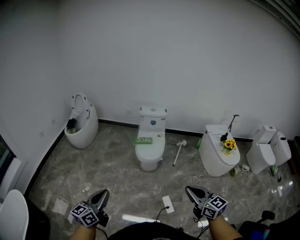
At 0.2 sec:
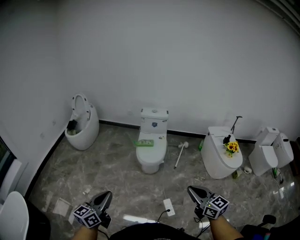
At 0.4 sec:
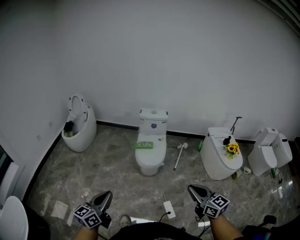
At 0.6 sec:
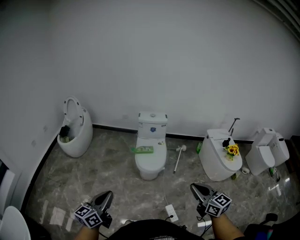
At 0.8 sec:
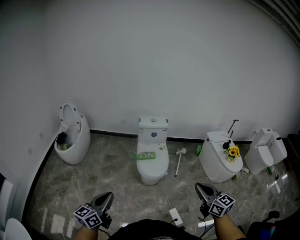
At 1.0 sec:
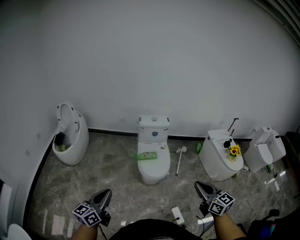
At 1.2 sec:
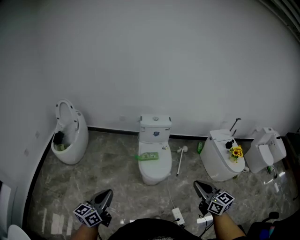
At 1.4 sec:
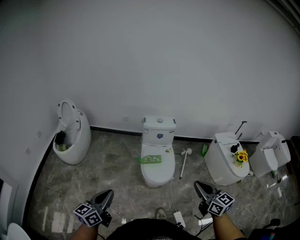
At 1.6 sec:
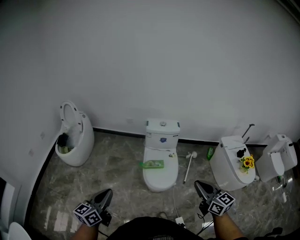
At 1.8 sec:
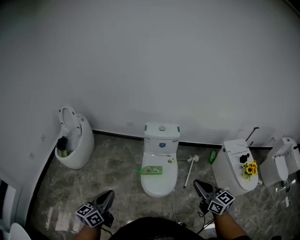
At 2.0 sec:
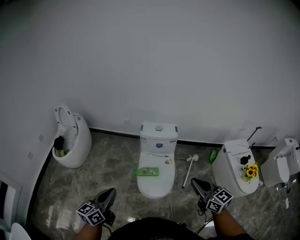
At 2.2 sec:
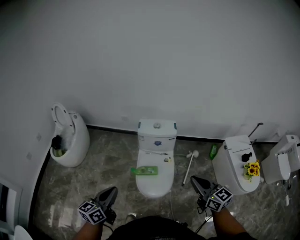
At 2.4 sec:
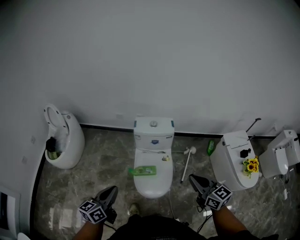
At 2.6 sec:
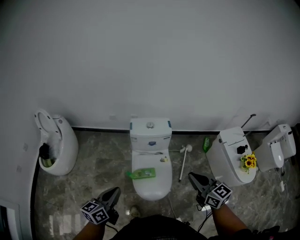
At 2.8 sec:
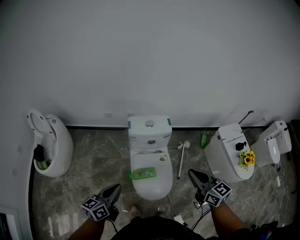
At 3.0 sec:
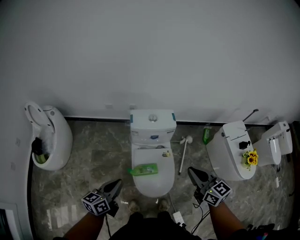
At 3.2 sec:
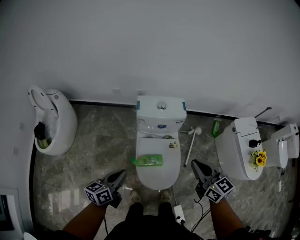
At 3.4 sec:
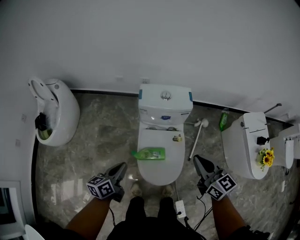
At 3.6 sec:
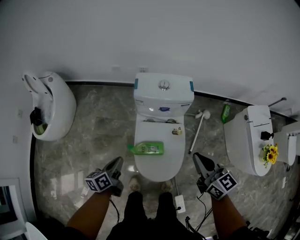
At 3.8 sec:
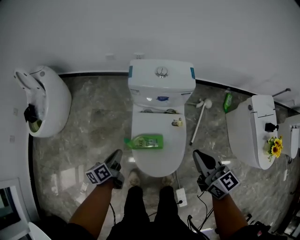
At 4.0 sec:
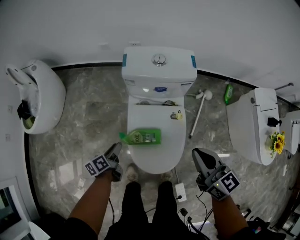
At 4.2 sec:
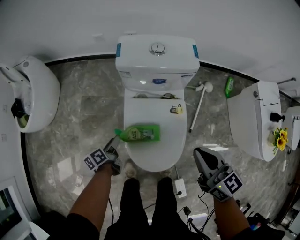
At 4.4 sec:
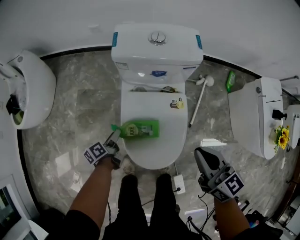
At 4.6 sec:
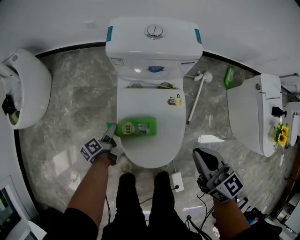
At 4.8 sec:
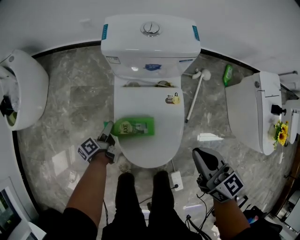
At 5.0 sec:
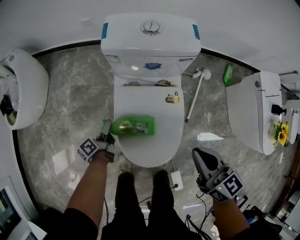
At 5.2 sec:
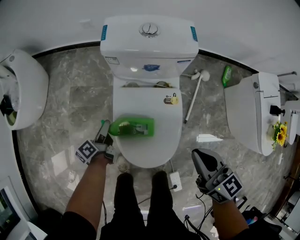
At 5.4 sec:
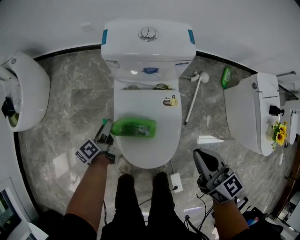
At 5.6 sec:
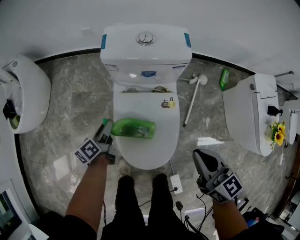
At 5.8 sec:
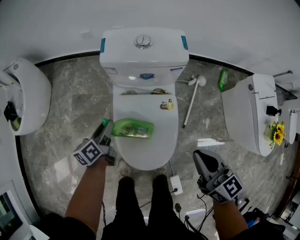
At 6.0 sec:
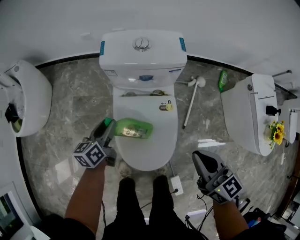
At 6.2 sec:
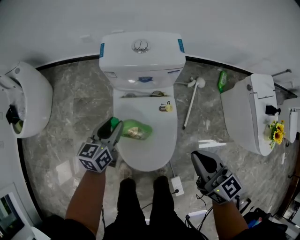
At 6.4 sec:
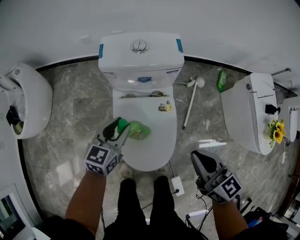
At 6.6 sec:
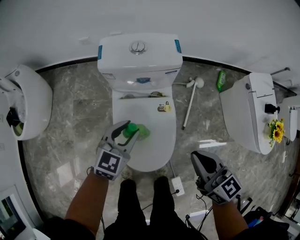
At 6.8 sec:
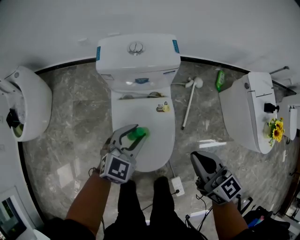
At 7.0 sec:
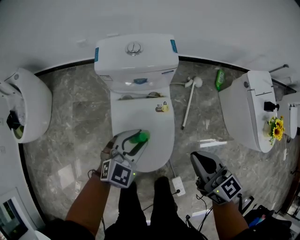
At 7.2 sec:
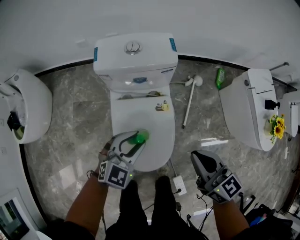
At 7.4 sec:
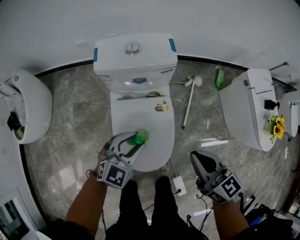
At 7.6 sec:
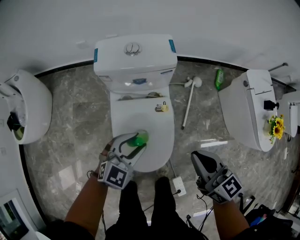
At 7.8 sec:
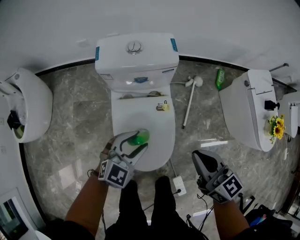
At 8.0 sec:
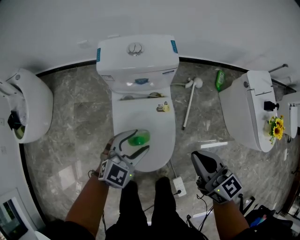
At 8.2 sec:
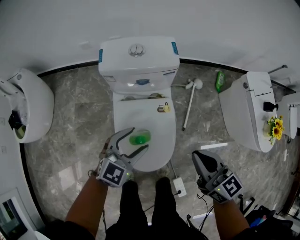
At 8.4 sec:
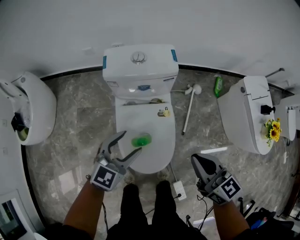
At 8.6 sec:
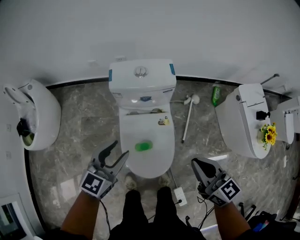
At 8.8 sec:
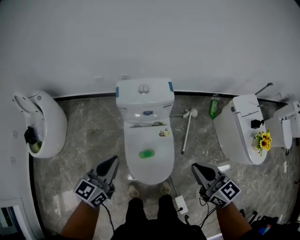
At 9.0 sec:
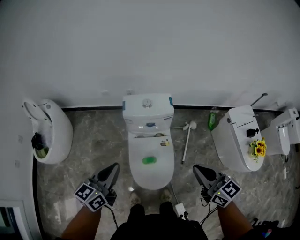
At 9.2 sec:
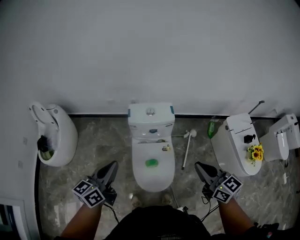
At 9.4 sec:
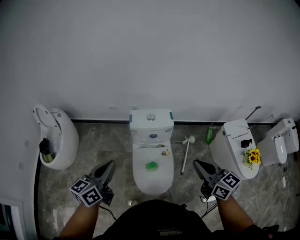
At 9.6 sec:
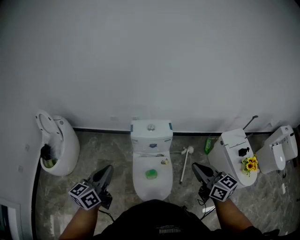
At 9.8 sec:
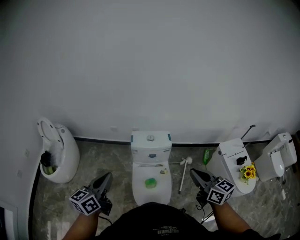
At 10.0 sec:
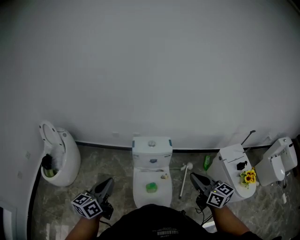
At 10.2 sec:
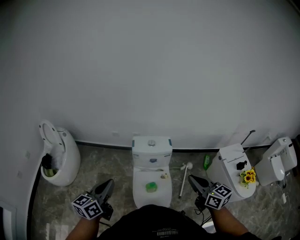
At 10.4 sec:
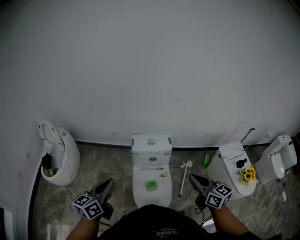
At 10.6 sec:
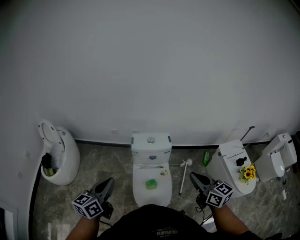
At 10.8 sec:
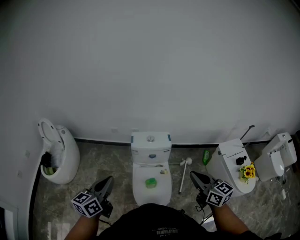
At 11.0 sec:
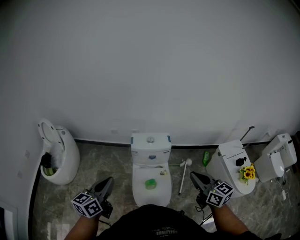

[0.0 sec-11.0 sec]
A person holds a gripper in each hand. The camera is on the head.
0.0 sec to 1.6 sec: The two grippers travel together, forward, roughly 50 cm.
1.6 sec to 3.2 sec: Both grippers are carried forward, some 40 cm. The left gripper goes approximately 20 cm downward, and rotates approximately 20 degrees.
3.2 sec to 4.8 sec: The left gripper shifts about 40 cm downward, rolls counterclockwise, seen from behind, by some 40 degrees, and opens. Meanwhile the right gripper goes roughly 30 cm downward.
4.8 sec to 6.2 sec: The right gripper travels upward by approximately 5 cm. The left gripper shifts approximately 20 cm upward and to the right, and rolls clockwise, seen from behind, by approximately 60 degrees.
6.2 sec to 7.8 sec: The left gripper goes roughly 15 cm to the right and backward, and twists roughly 50 degrees clockwise, seen from behind.
7.8 sec to 9.4 sec: The right gripper travels upward by some 35 cm; the left gripper moves upward and to the left, roughly 50 cm, twists about 40 degrees counterclockwise, seen from behind, and closes up.
9.4 sec to 11.0 sec: The left gripper moves some 5 cm.

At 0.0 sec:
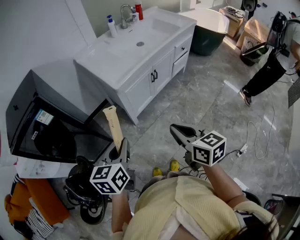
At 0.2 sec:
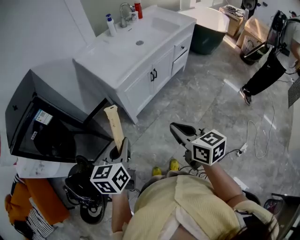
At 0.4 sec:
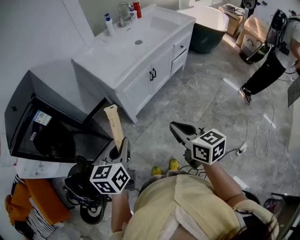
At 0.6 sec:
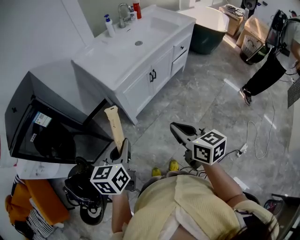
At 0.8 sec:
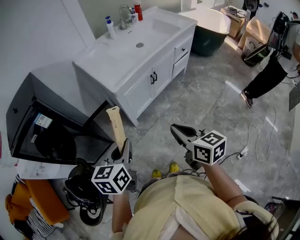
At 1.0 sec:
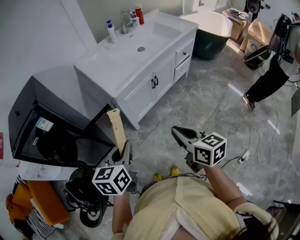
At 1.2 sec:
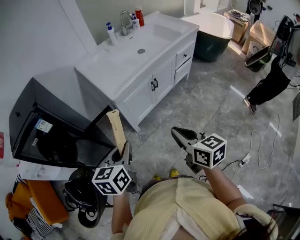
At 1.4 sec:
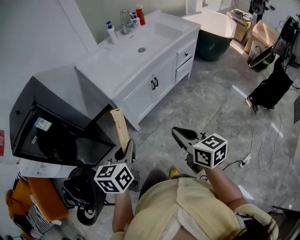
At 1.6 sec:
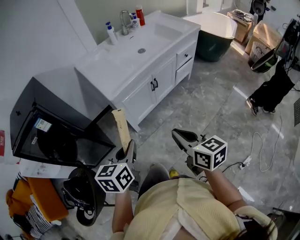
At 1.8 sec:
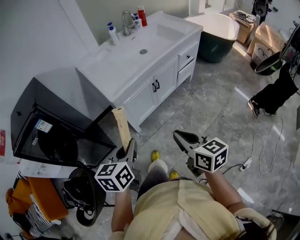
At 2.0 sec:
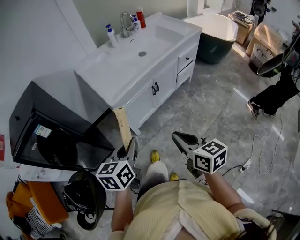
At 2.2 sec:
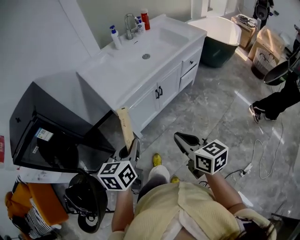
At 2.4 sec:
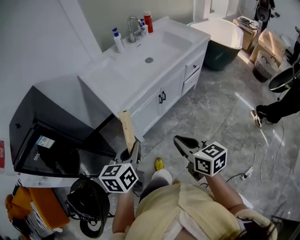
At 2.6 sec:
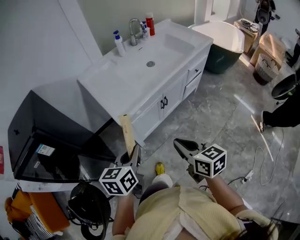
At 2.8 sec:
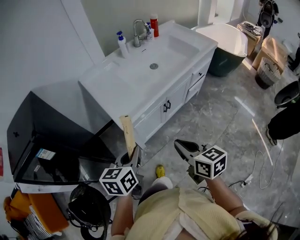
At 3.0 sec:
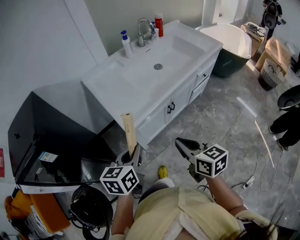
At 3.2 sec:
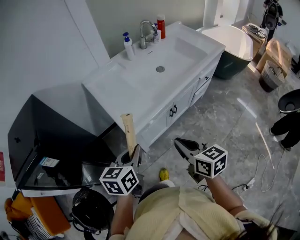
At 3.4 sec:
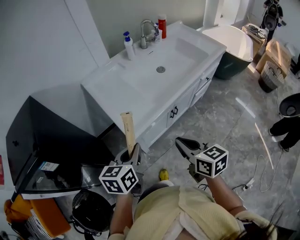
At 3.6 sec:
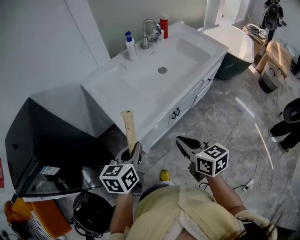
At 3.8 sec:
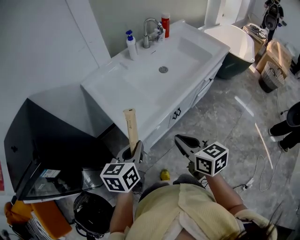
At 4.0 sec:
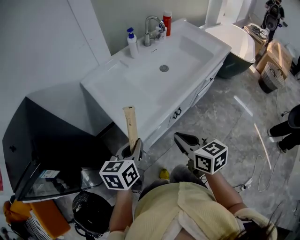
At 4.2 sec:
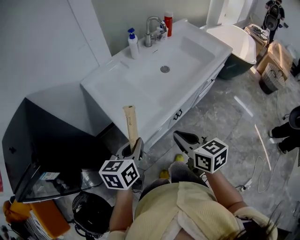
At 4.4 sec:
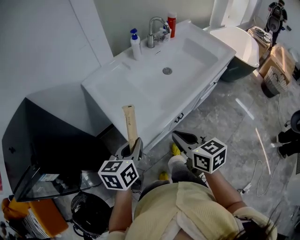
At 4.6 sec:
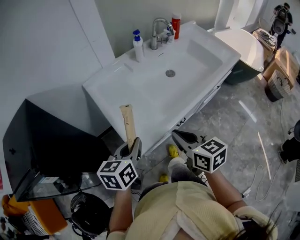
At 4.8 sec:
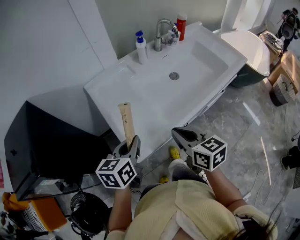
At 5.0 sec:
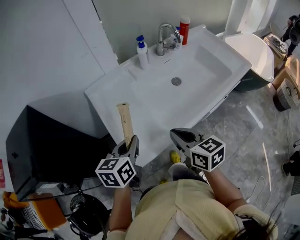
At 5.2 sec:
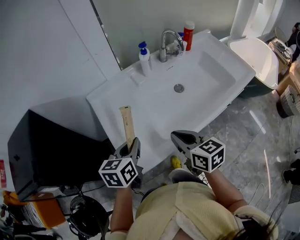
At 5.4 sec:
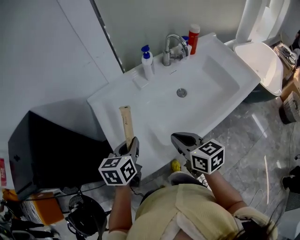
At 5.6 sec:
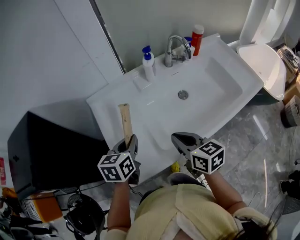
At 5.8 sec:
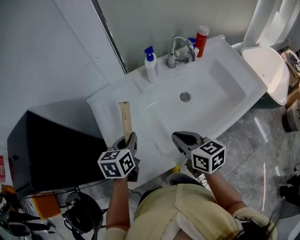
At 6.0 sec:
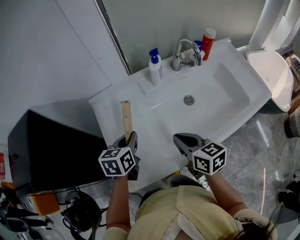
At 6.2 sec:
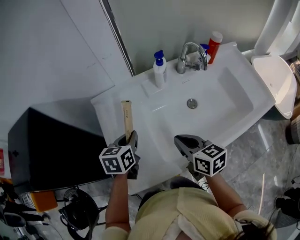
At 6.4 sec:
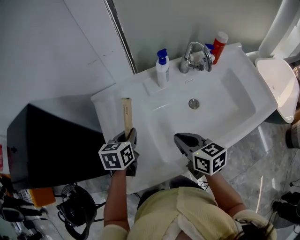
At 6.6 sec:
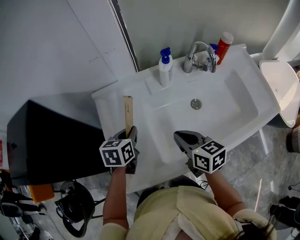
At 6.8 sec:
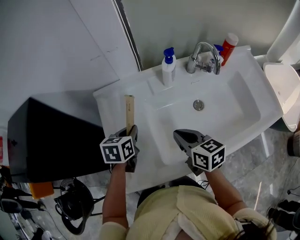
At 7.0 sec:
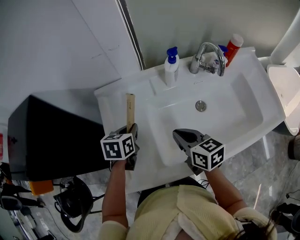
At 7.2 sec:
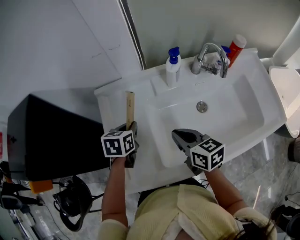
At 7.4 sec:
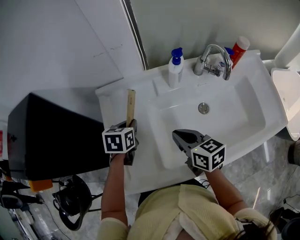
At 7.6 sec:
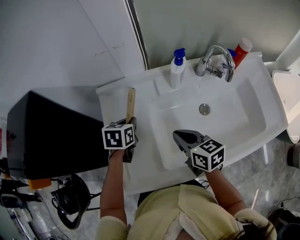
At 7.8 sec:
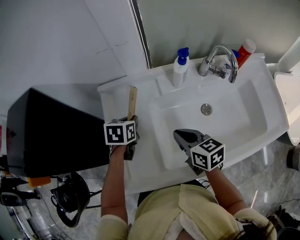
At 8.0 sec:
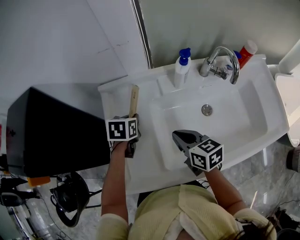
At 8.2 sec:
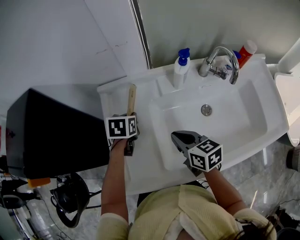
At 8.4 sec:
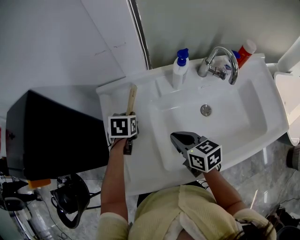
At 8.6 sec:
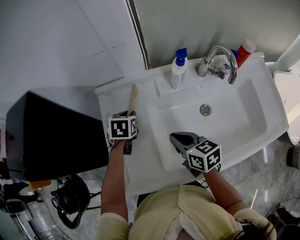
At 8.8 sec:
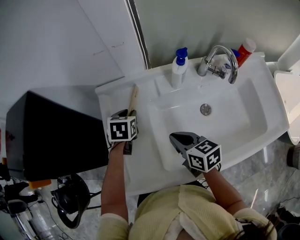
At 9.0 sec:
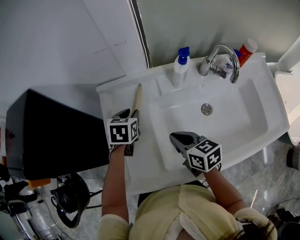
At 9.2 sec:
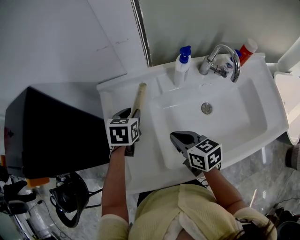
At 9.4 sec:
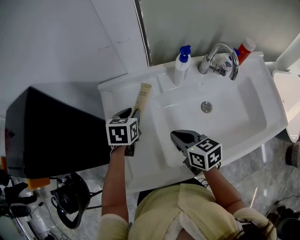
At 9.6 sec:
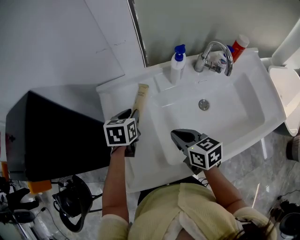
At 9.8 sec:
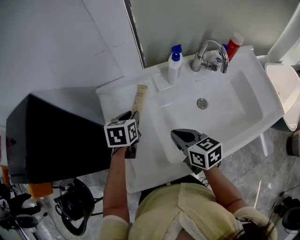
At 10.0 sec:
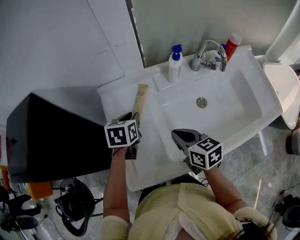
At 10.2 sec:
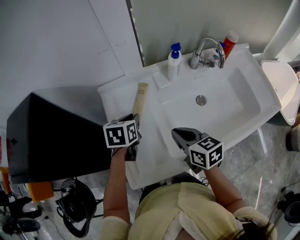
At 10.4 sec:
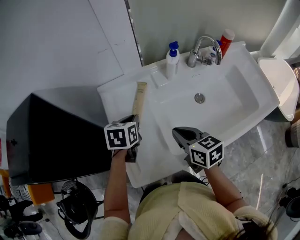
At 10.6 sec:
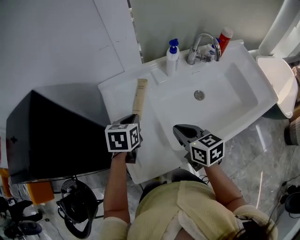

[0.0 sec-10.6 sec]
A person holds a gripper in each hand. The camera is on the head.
0.0 sec to 1.6 sec: Both grippers move to the right, about 10 cm.
1.6 sec to 3.0 sec: The grippers both shift forward by some 20 cm.
3.0 sec to 4.6 sec: The grippers both shift forward by about 15 cm.
4.6 sec to 6.0 sec: Both grippers travel together forward, approximately 20 cm.
6.0 sec to 7.6 sec: The left gripper goes some 10 cm forward and downward. The right gripper travels forward by roughly 10 cm.
7.6 sec to 9.0 sec: The left gripper opens up.
9.0 sec to 10.6 sec: The left gripper heads backward, covering some 10 cm, and closes its fingers. Meanwhile the right gripper is displaced backward by approximately 5 cm.

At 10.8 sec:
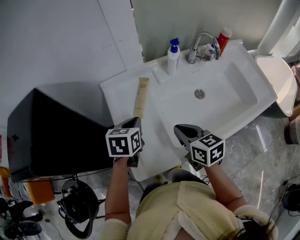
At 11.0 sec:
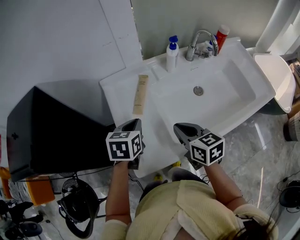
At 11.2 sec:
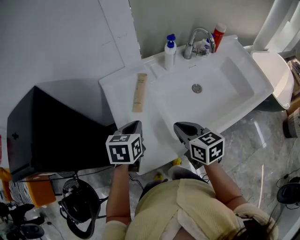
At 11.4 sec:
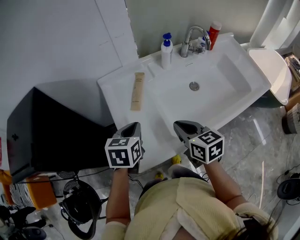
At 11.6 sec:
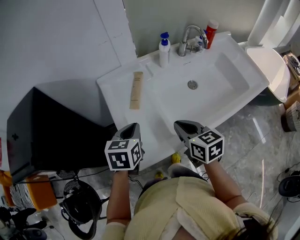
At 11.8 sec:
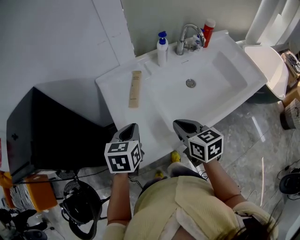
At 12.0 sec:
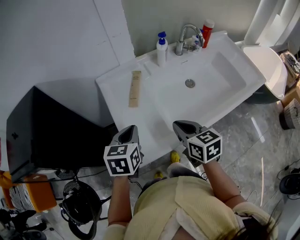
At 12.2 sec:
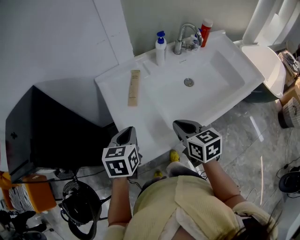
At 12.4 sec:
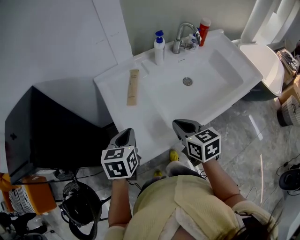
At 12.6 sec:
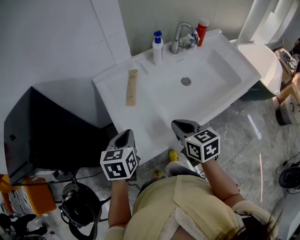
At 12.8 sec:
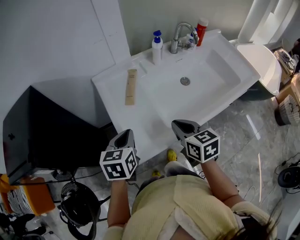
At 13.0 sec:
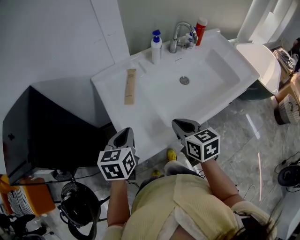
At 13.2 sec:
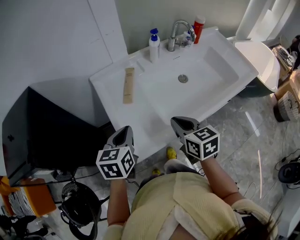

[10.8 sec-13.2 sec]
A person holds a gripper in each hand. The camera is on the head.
10.8 sec to 12.0 sec: The right gripper shifts about 5 cm backward, while the left gripper travels backward by about 10 cm.
12.0 sec to 13.2 sec: There are only small adjustments of the grippers.
